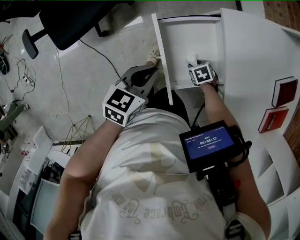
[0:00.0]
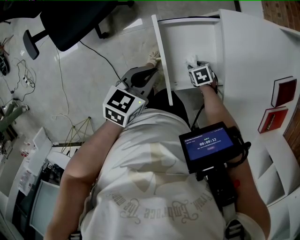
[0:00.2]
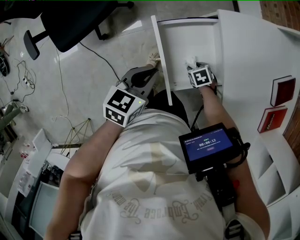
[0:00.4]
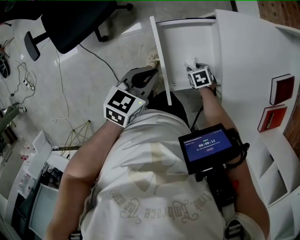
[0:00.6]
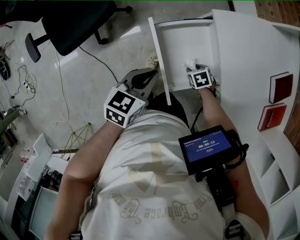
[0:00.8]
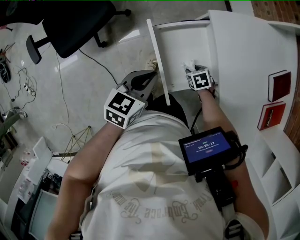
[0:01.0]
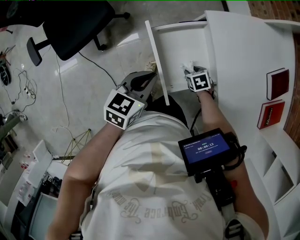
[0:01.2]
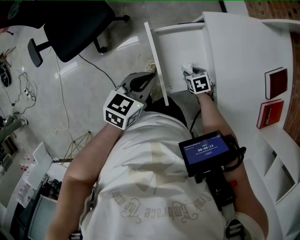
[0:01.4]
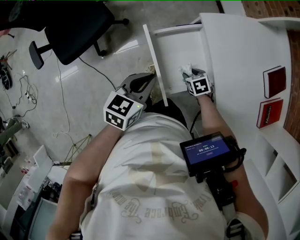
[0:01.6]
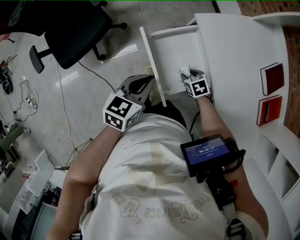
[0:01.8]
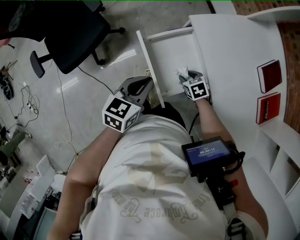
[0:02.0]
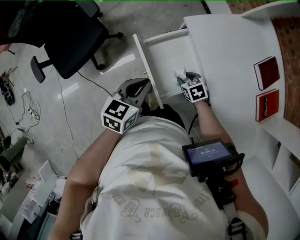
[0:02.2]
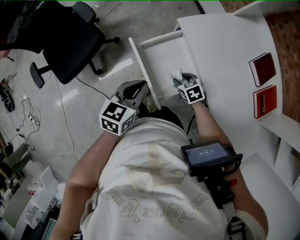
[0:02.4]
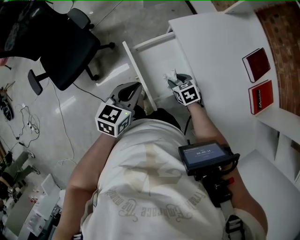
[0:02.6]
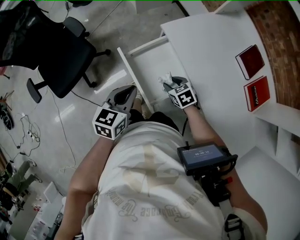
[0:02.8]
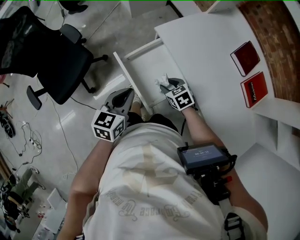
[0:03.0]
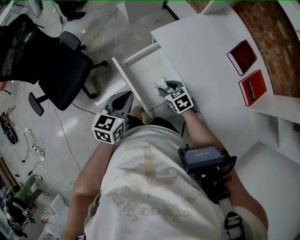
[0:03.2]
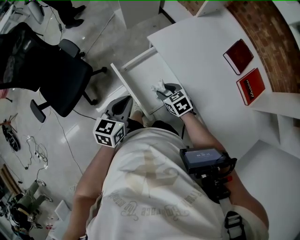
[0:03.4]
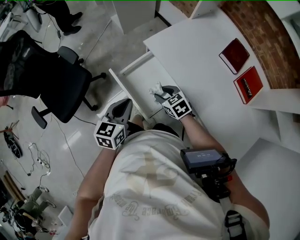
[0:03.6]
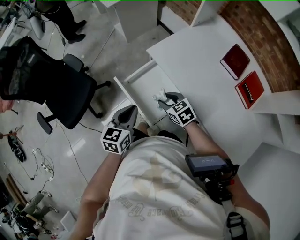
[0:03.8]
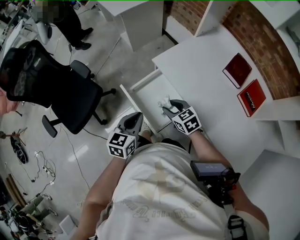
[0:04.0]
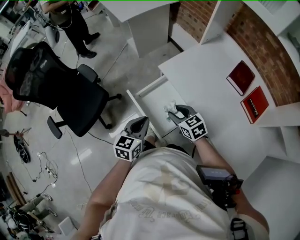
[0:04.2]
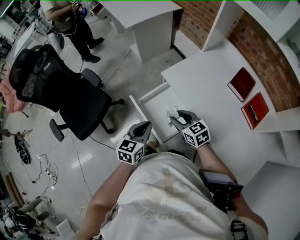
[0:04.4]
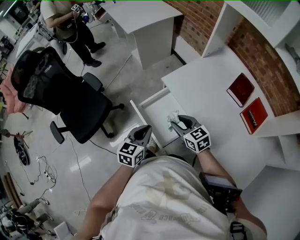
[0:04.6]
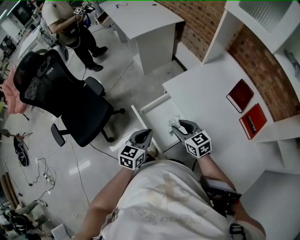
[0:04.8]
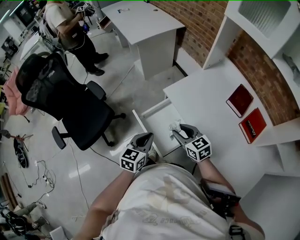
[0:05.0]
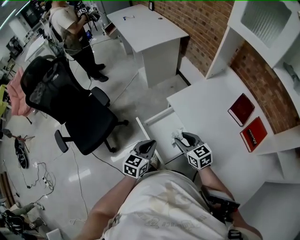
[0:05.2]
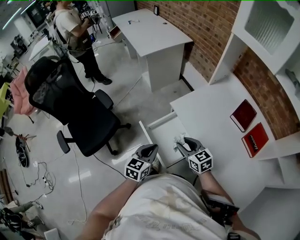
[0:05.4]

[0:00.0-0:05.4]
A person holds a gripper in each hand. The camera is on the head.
0:00.0 to 0:01.4: The two grippers go roughly 5 cm upward.
0:01.4 to 0:02.8: The right gripper goes some 10 cm upward.
0:02.8 to 0:04.0: The right gripper shifts about 10 cm upward.
0:04.0 to 0:05.4: The right gripper heads upward, covering some 5 cm.

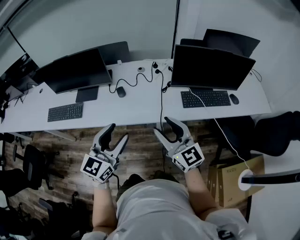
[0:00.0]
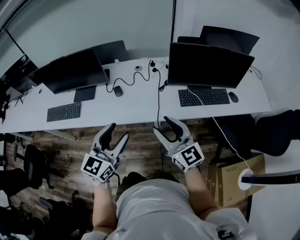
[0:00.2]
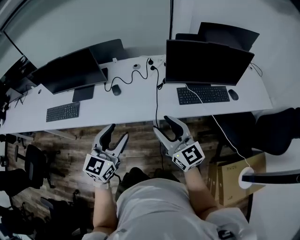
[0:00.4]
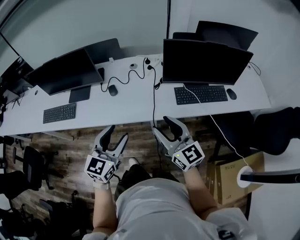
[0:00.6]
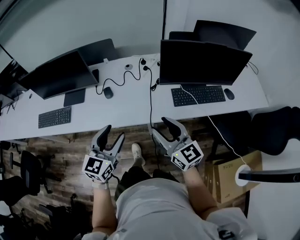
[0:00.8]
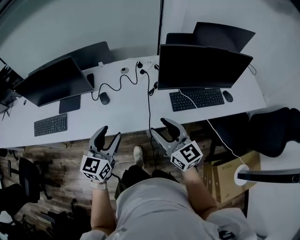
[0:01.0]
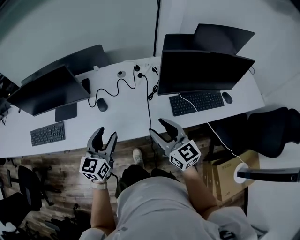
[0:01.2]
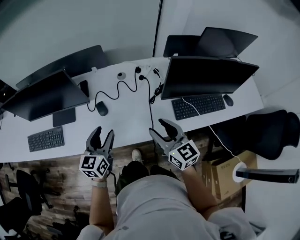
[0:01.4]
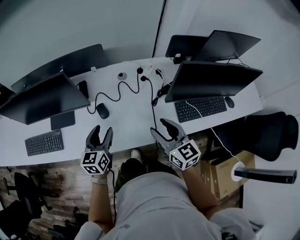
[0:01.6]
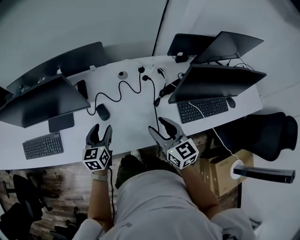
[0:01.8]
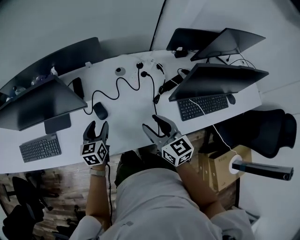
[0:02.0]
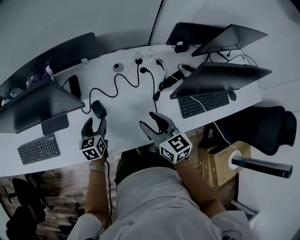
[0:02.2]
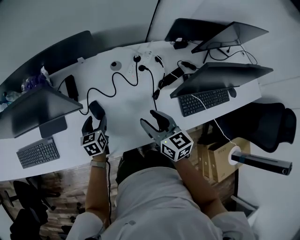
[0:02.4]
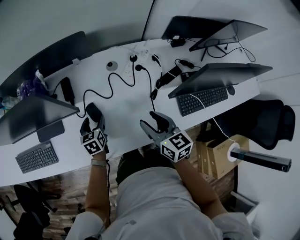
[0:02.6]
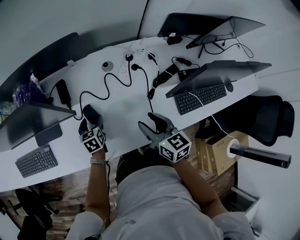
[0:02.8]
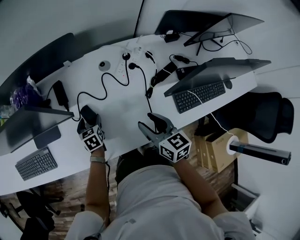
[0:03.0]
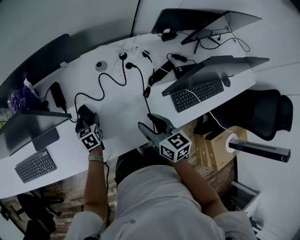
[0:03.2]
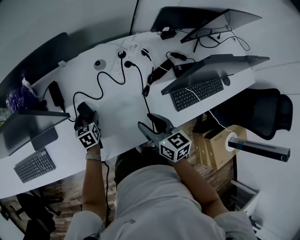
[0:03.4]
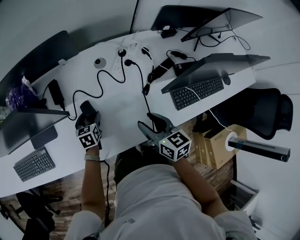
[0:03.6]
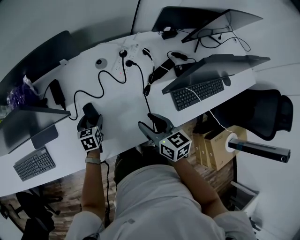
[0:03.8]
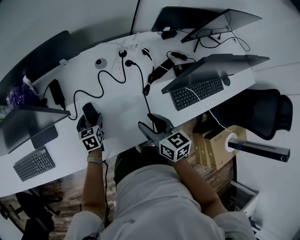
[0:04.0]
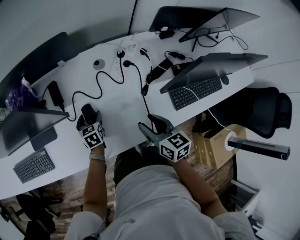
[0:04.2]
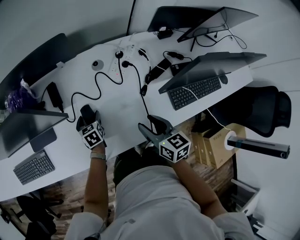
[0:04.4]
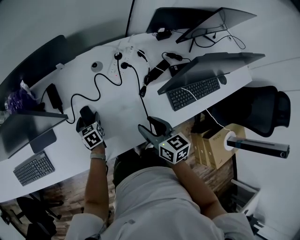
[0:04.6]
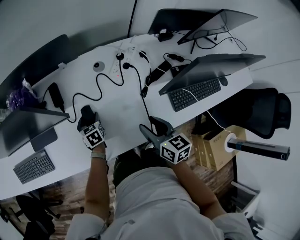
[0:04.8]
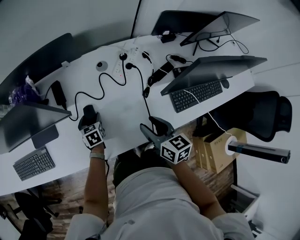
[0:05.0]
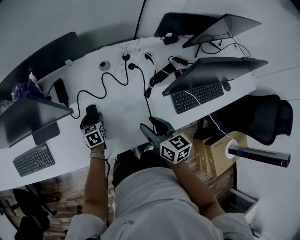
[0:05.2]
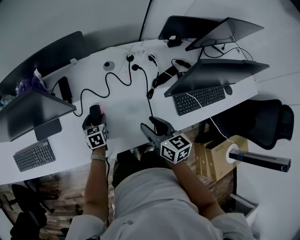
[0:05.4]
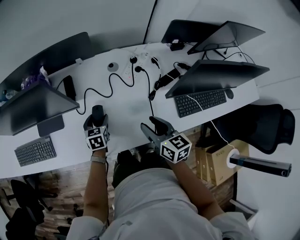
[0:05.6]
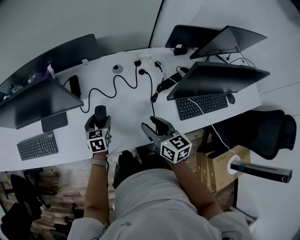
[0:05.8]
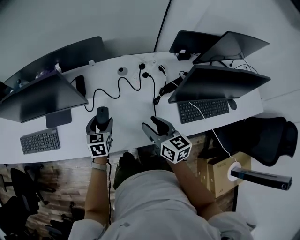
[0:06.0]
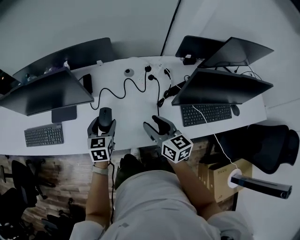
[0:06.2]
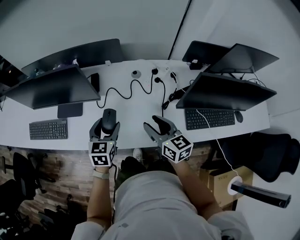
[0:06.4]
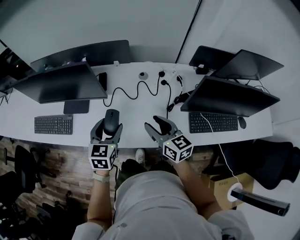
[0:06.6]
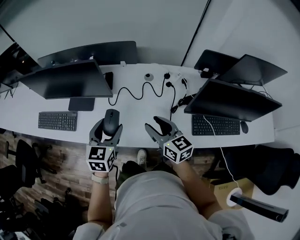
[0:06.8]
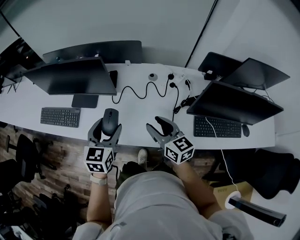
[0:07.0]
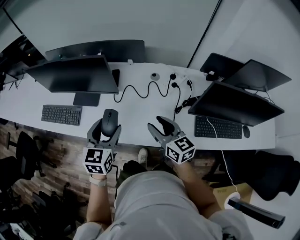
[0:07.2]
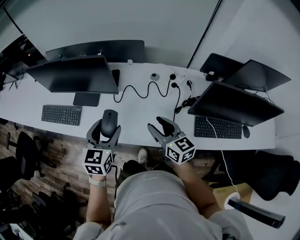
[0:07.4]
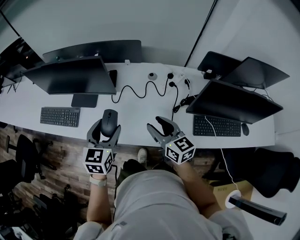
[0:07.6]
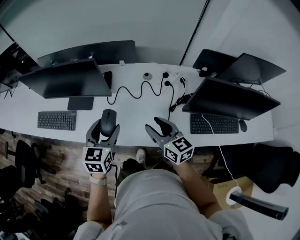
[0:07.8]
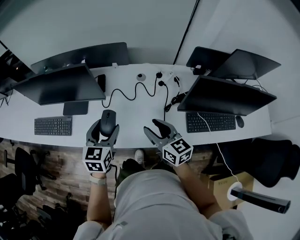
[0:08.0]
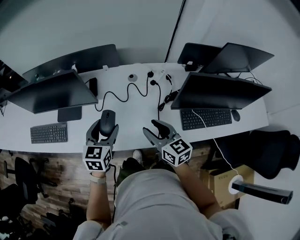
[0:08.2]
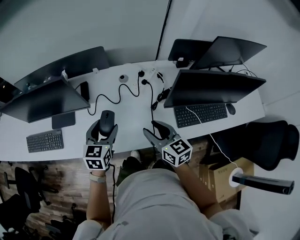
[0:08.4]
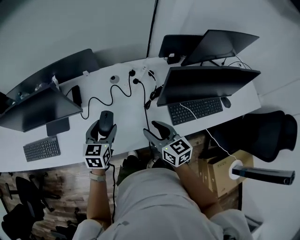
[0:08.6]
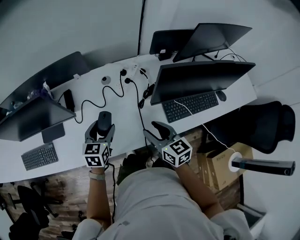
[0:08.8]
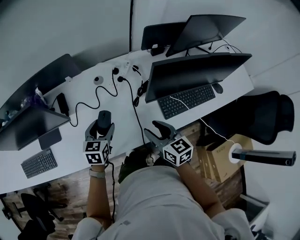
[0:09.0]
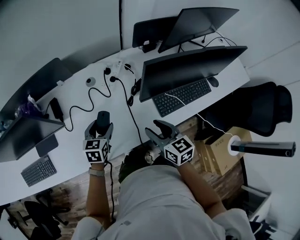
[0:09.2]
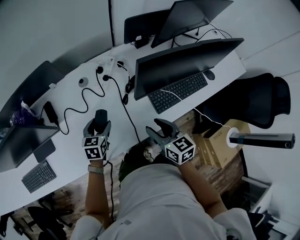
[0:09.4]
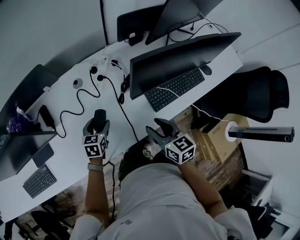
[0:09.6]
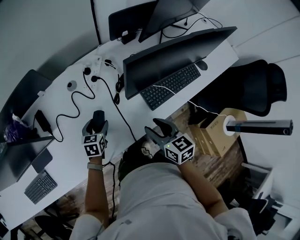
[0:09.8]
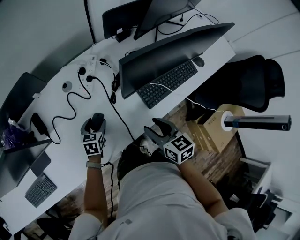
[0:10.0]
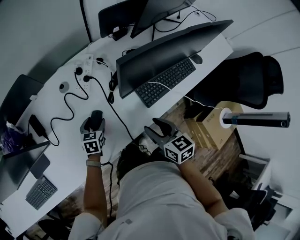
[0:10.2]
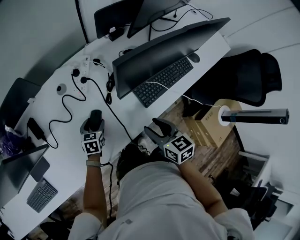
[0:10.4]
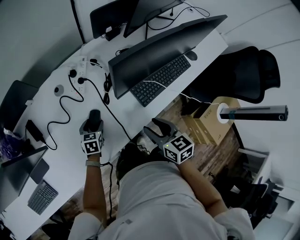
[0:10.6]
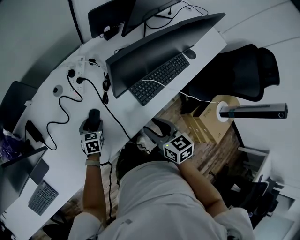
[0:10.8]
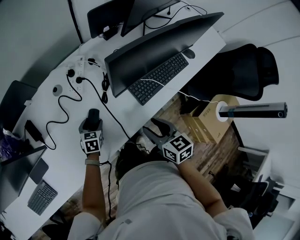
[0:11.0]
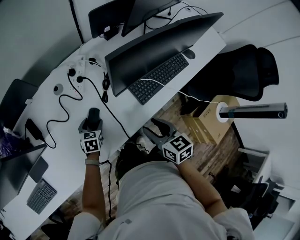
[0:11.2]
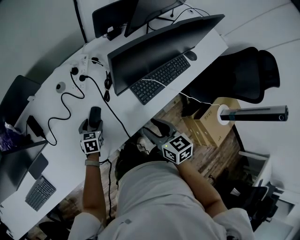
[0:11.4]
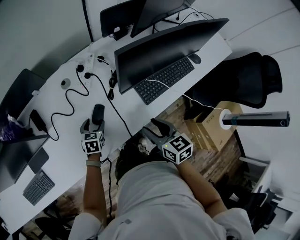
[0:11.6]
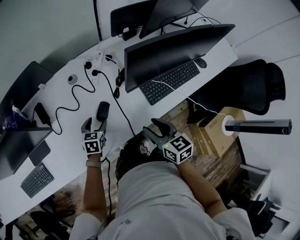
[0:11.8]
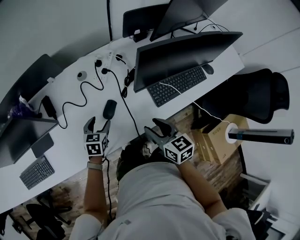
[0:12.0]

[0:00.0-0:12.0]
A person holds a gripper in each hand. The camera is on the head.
0:00.0 to 0:01.6: The two grippers go approximately 30 cm forward and downward. The left gripper swivels some 20 degrees. Meanwhile the right gripper rotates roughly 20 degrees.
0:01.6 to 0:03.0: The right gripper moves downward and forward, approximately 15 cm, and turns by some 20 degrees; the left gripper moves downward and forward, approximately 25 cm, and swivels approximately 30 degrees.
0:03.0 to 0:04.4: The grippers make only small movements.
0:04.4 to 0:06.0: The left gripper heads upward and backward, covering roughly 15 cm. Meanwhile the right gripper shifts approximately 5 cm upward.
0:06.0 to 0:07.6: The right gripper travels upward and to the left by about 10 cm. The left gripper moves upward and backward, roughly 20 cm.
0:07.6 to 0:09.0: The left gripper travels to the right, downward and forward by approximately 20 cm, and swivels about 30 degrees, while the right gripper goes approximately 15 cm to the right and downward, and changes its angle by about 30 degrees.
0:09.0 to 0:10.4: The left gripper goes roughly 15 cm downward. Meanwhile the right gripper moves to the right, some 5 cm, and swivels about 20 degrees.
0:10.4 to 0:12.0: The left gripper goes approximately 10 cm upward and backward. The right gripper shifts by some 5 cm.

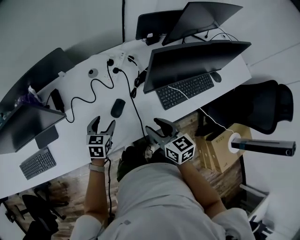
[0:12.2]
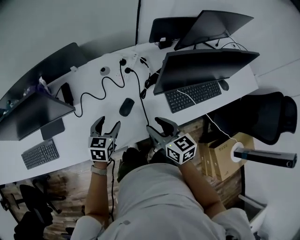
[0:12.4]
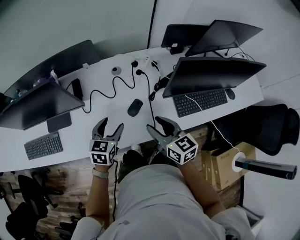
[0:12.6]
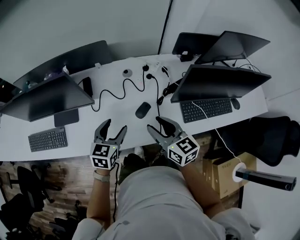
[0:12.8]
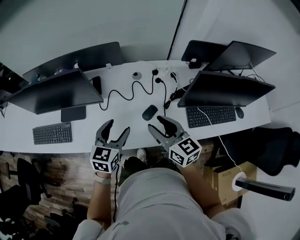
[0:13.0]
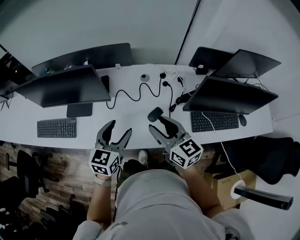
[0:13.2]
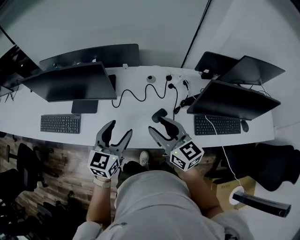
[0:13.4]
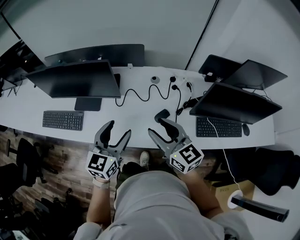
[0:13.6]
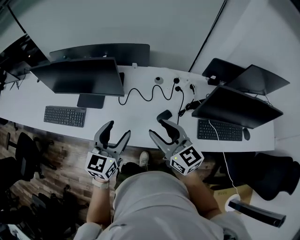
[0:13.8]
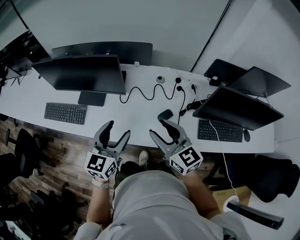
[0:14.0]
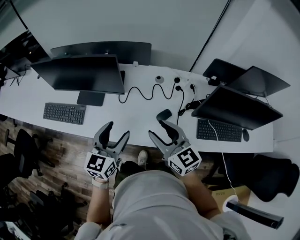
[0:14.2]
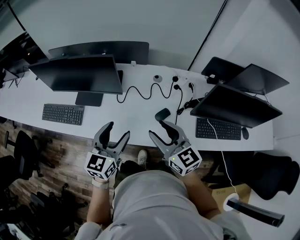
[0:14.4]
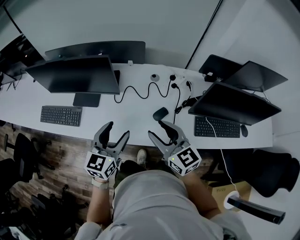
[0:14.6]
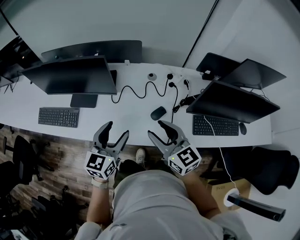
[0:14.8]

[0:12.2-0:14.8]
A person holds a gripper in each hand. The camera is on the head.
0:12.2 to 0:13.4: The left gripper goes roughly 25 cm upward and to the left, and rotates roughly 30 degrees. Meanwhile the right gripper is displaced to the left and upward by roughly 20 cm, and turns by roughly 30 degrees.
0:13.4 to 0:14.8: There are only small adjustments of the grippers.

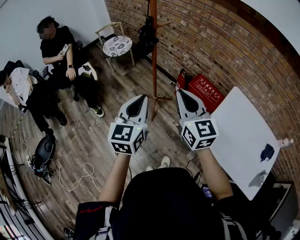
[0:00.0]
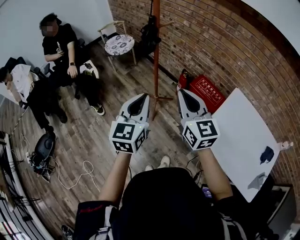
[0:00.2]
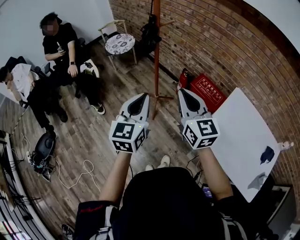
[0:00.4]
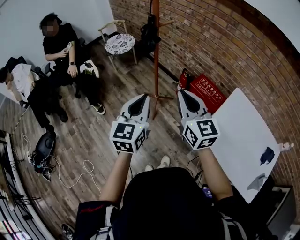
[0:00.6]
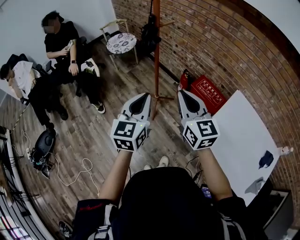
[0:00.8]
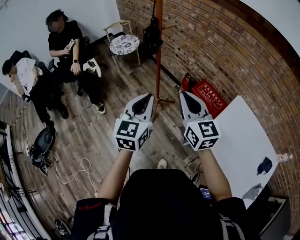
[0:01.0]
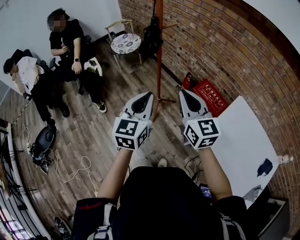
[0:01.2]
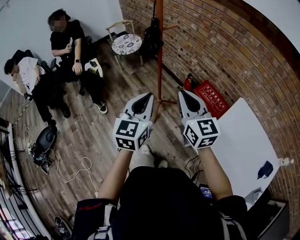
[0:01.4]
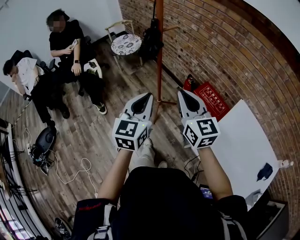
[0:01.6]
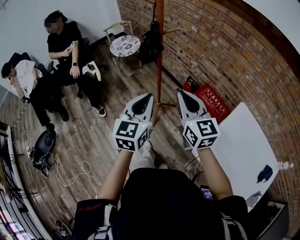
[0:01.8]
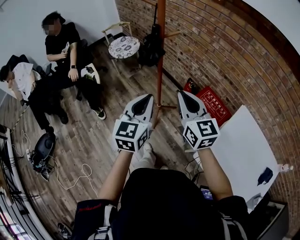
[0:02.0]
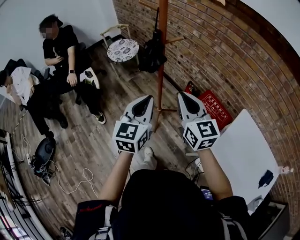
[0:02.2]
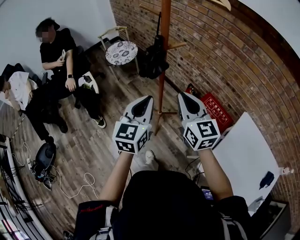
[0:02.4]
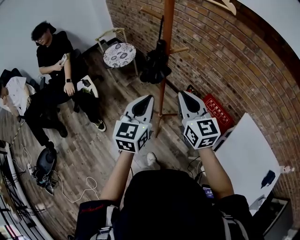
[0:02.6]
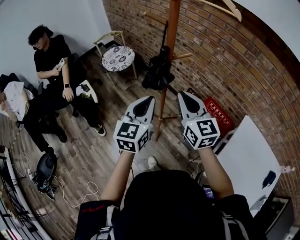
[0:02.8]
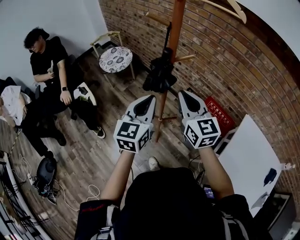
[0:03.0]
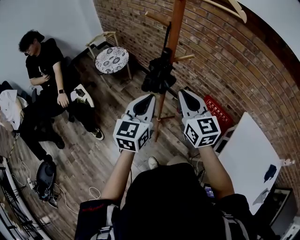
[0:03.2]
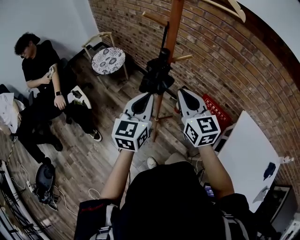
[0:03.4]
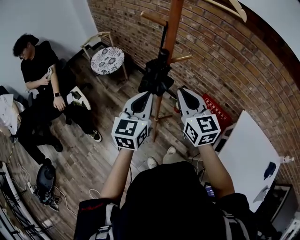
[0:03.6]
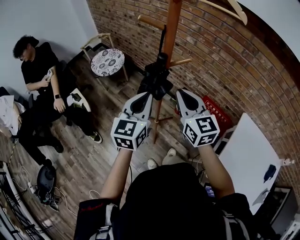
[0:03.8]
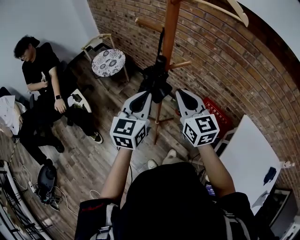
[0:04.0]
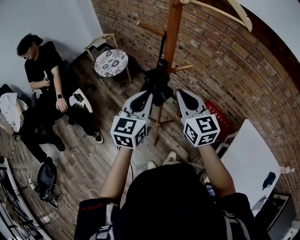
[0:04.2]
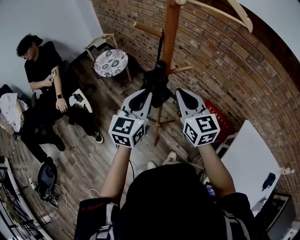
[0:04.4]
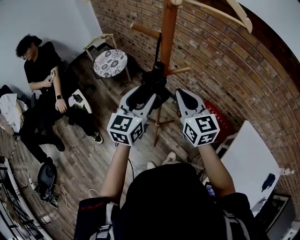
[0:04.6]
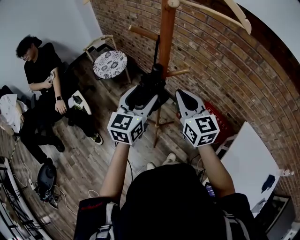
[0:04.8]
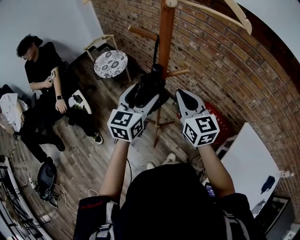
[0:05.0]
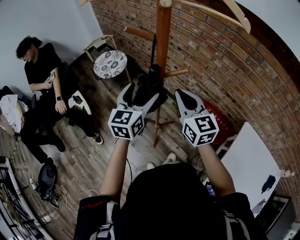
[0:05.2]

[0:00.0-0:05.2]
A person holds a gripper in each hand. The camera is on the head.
0:00.0 to 0:01.8: Both grippers travel together forward, some 10 cm.
0:01.8 to 0:03.4: The two grippers go about 20 cm forward.
0:03.4 to 0:05.2: The grippers both shift forward by roughly 10 cm. The left gripper opens its fingers.
